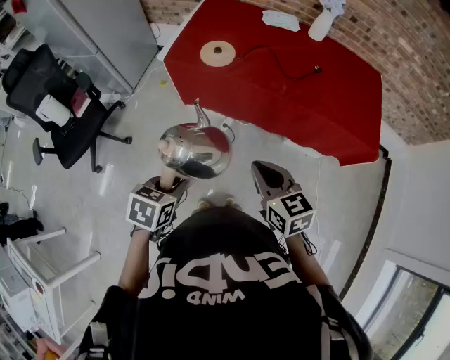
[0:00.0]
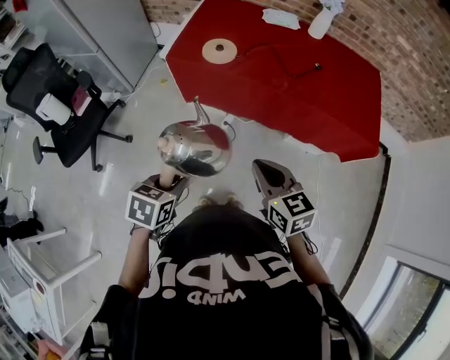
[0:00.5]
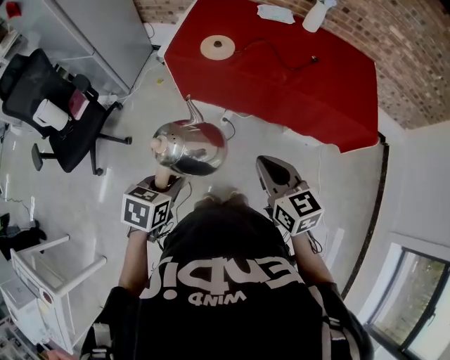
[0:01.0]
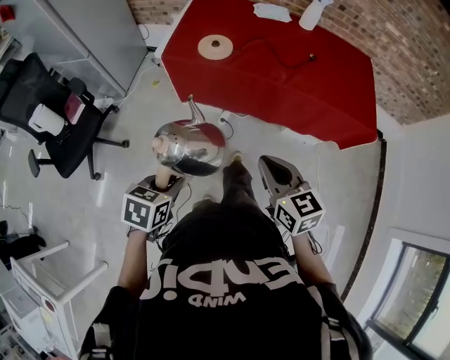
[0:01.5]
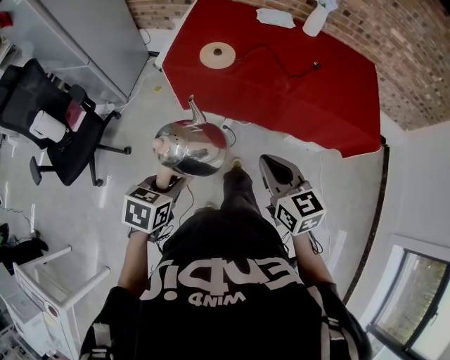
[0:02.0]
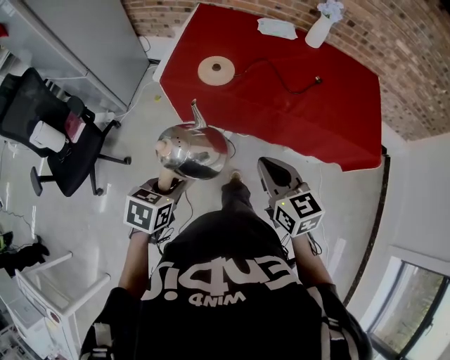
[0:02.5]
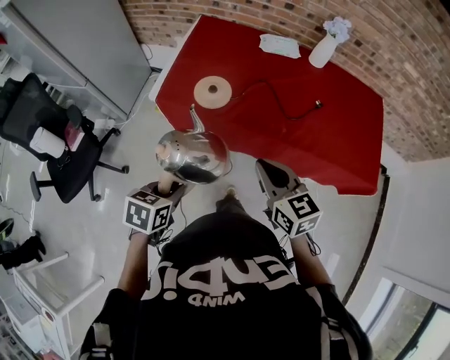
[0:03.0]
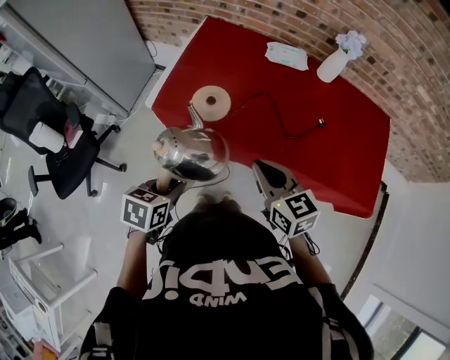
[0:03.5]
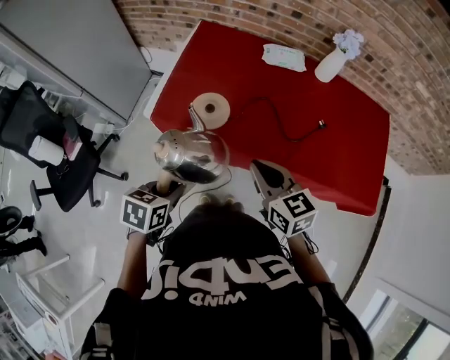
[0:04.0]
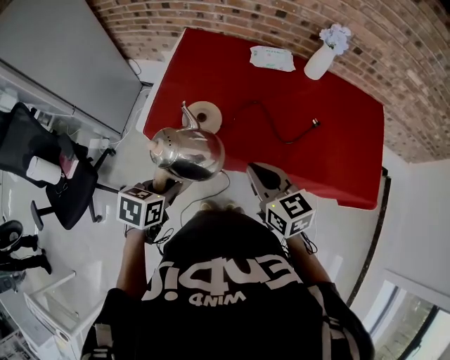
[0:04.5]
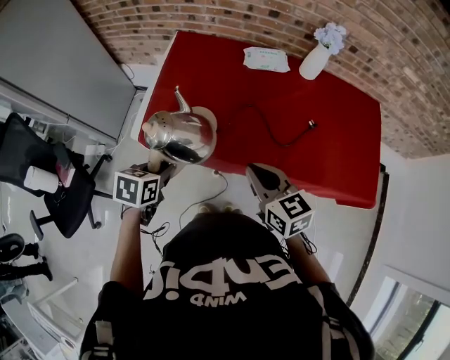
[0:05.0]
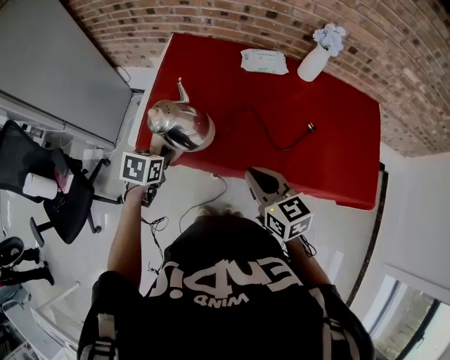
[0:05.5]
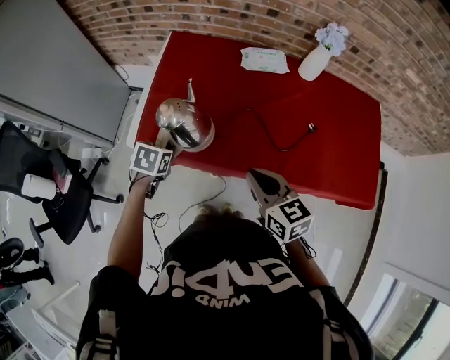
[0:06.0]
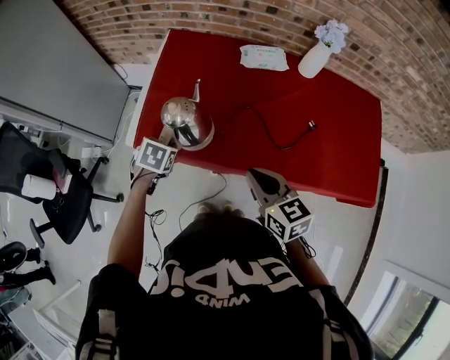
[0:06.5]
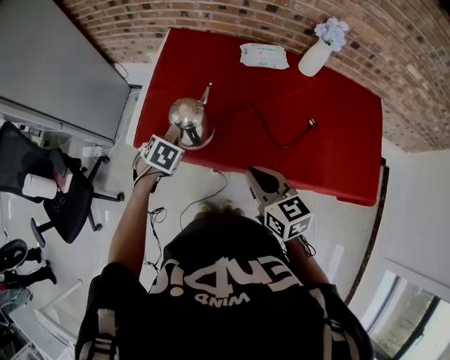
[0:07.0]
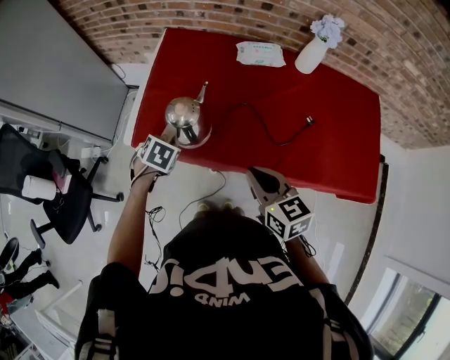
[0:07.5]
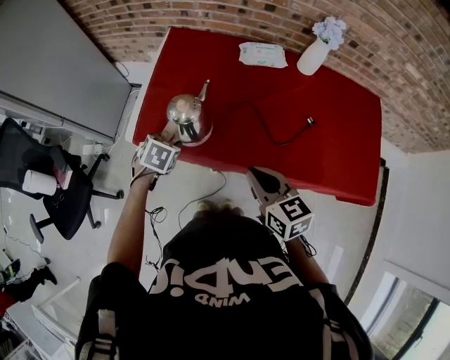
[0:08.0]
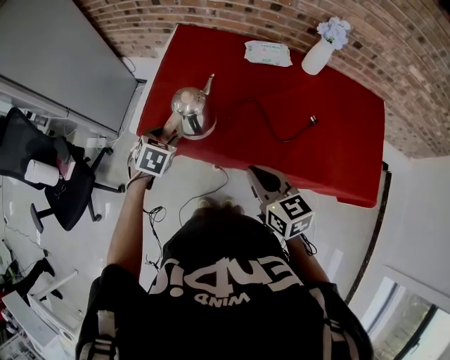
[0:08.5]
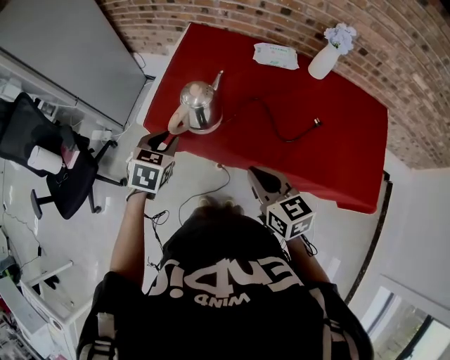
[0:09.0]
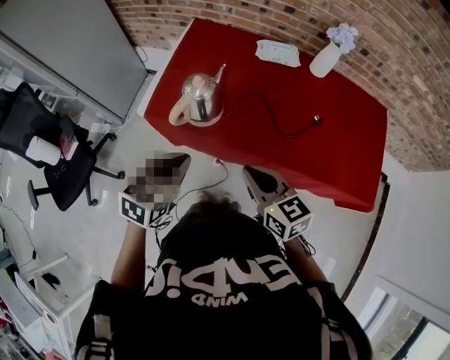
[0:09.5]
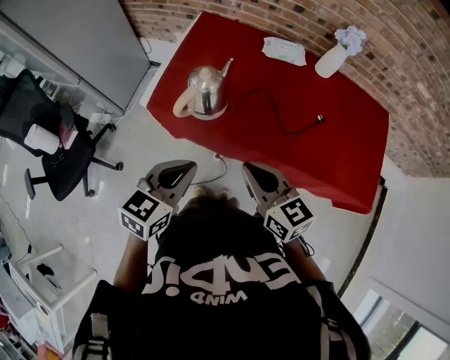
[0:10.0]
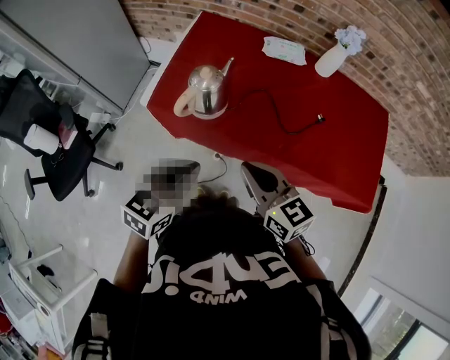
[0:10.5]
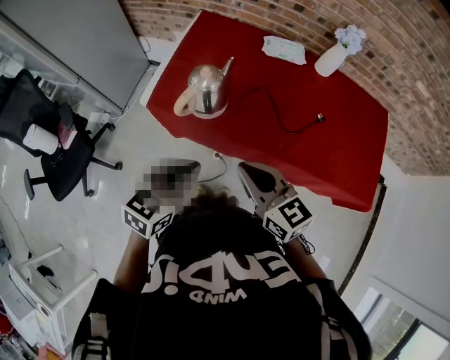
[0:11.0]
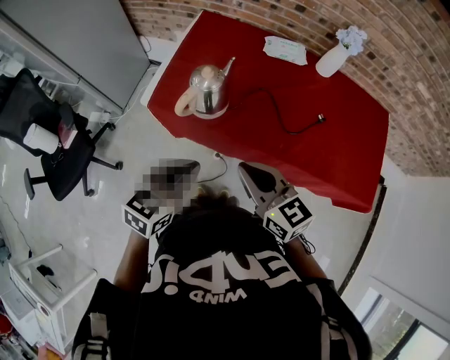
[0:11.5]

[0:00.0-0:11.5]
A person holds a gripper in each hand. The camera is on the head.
0:00.0 to 0:02.0: The left gripper goes roughly 5 cm to the left.
0:02.0 to 0:04.0: The two grippers go approximately 30 cm forward.
0:04.0 to 0:06.0: The left gripper goes approximately 25 cm forward and downward. The right gripper moves forward, approximately 5 cm.
0:06.0 to 0:07.5: The grippers stay close to where they were, moving slightly.
0:07.5 to 0:09.5: The right gripper moves backward, roughly 5 cm, while the left gripper goes approximately 25 cm backward and upward, points its fingers roughly 30 degrees further upward, and opens, then closes again.
0:09.5 to 0:11.5: The grippers make only small movements.

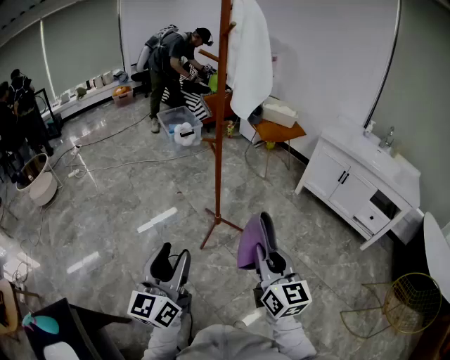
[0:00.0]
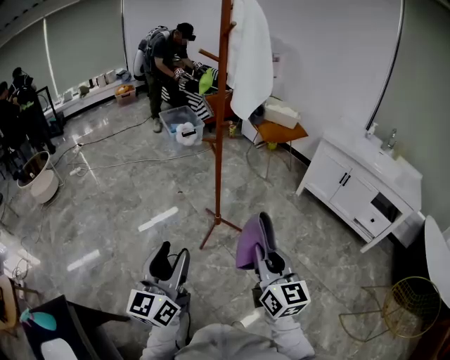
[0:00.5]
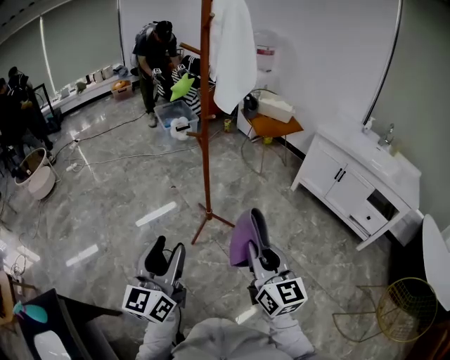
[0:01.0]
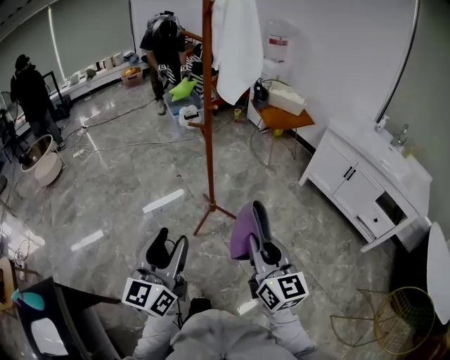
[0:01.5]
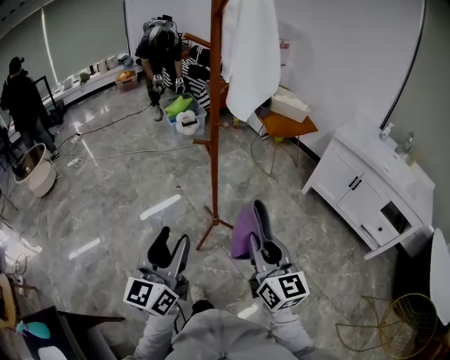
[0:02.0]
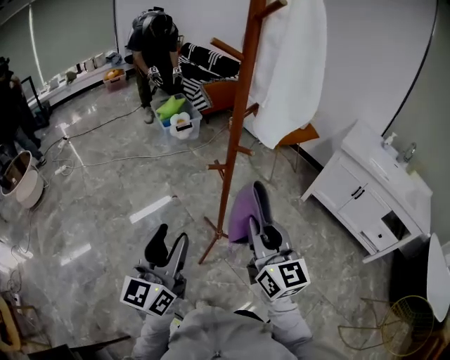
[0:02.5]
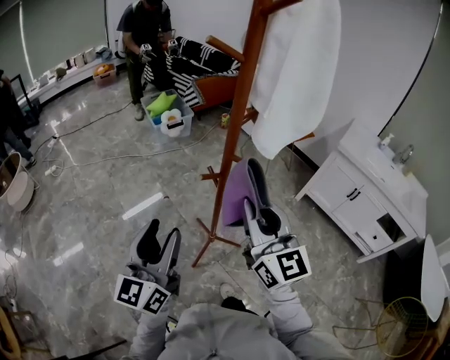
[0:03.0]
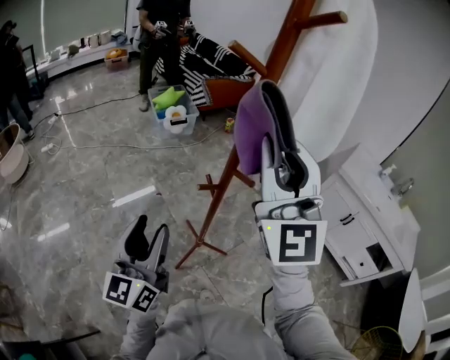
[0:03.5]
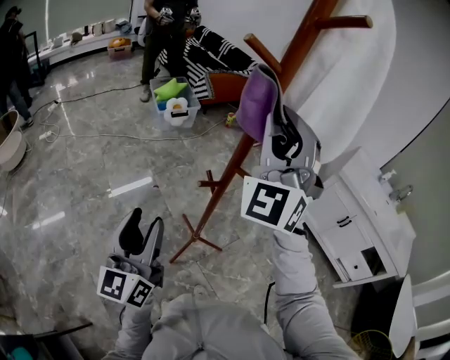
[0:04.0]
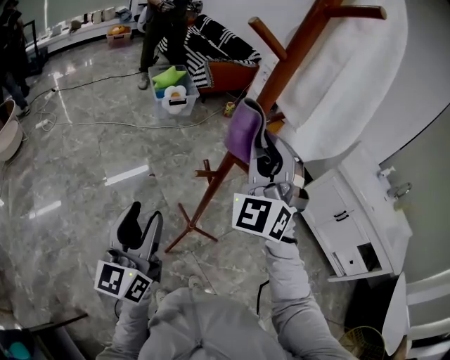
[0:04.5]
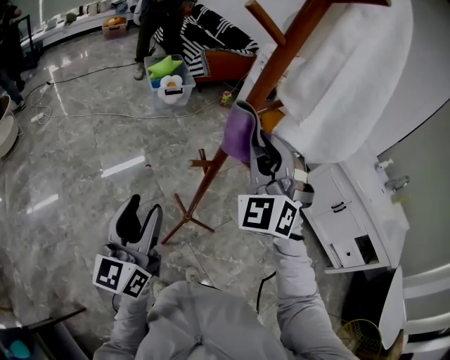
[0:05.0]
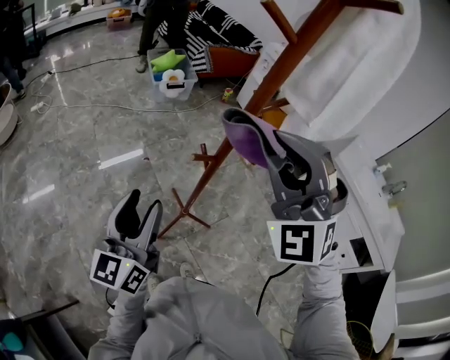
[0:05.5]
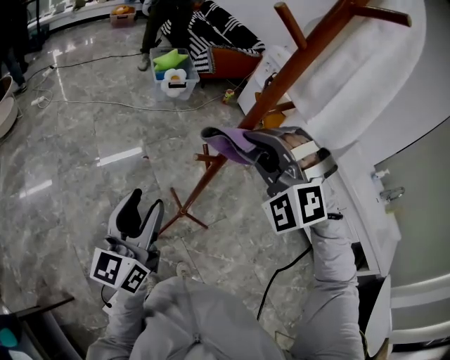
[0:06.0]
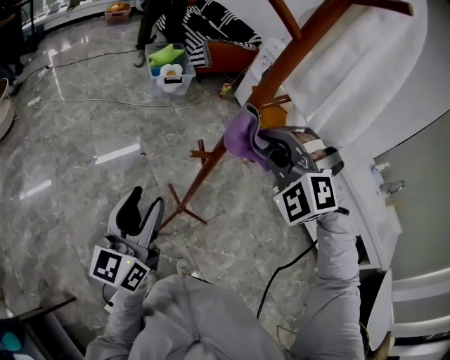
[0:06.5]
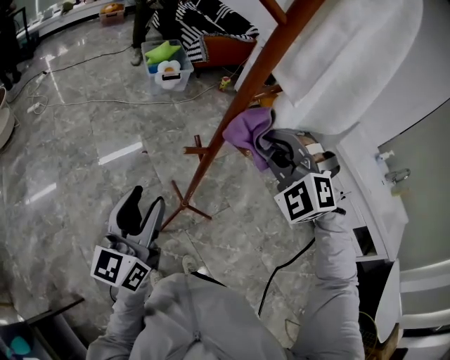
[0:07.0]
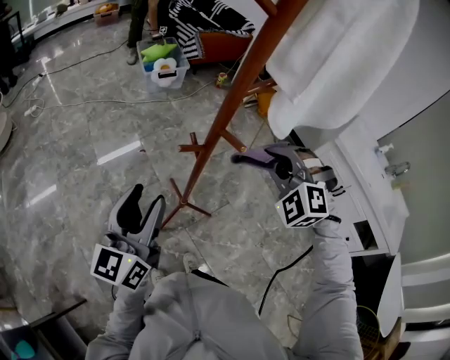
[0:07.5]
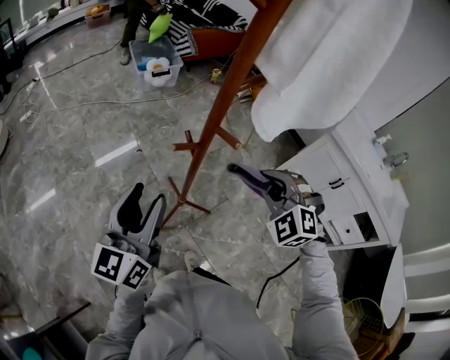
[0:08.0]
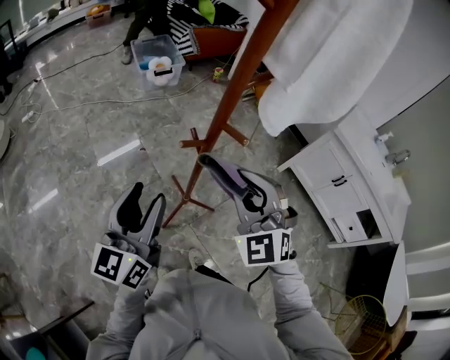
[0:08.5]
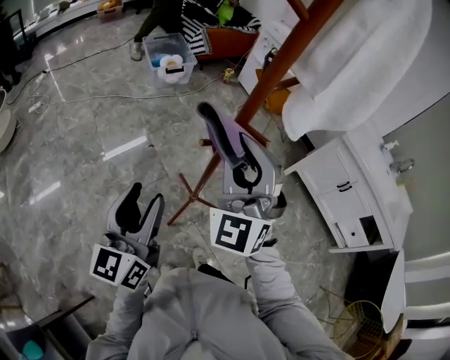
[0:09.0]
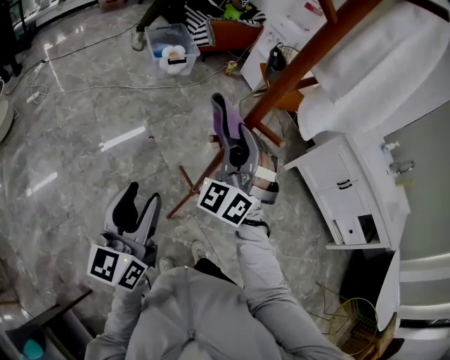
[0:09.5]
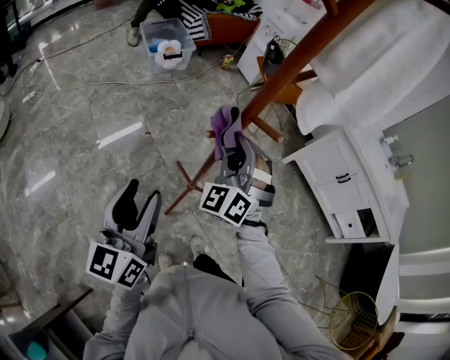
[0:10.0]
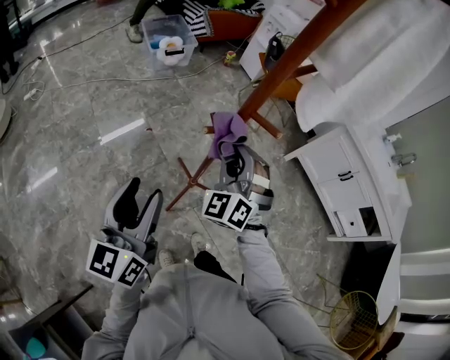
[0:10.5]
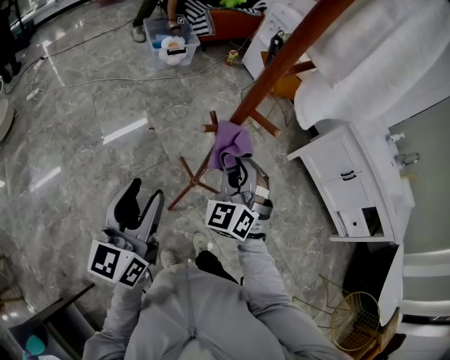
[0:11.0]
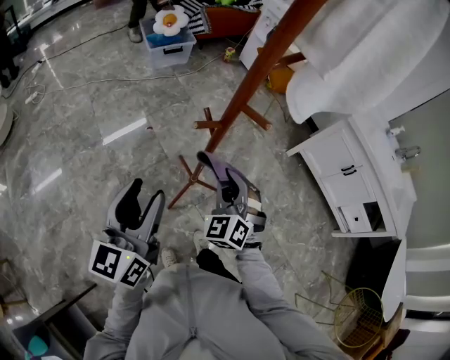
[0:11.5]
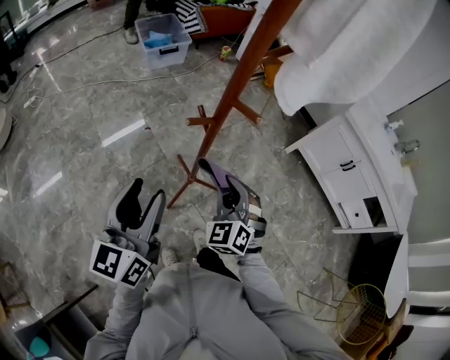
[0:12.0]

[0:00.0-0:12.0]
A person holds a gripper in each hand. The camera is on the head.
0:00.0 to 0:02.0: The grippers both shift forward by approximately 15 cm.
0:02.0 to 0:04.0: The left gripper shifts approximately 25 cm forward and to the left, while the right gripper travels forward and upward by about 40 cm, and twists some 70 degrees counterclockwise, seen from behind.
0:04.0 to 0:06.0: The right gripper moves up and down over some 15 cm, changing direction 2 times, and tilts its fingers roughly 50 degrees downward.
0:06.0 to 0:08.0: The left gripper travels to the right by some 5 cm. The right gripper moves to the right and downward, some 20 cm, and turns by roughly 30 degrees.
0:08.0 to 0:10.0: The right gripper goes about 15 cm to the left, and changes its angle by about 30 degrees. Meanwhile the left gripper shifts about 10 cm to the left.
0:10.0 to 0:12.0: The right gripper goes some 15 cm downward, backward and to the right, and changes its angle by some 20 degrees. The left gripper is displaced to the right by roughly 5 cm.

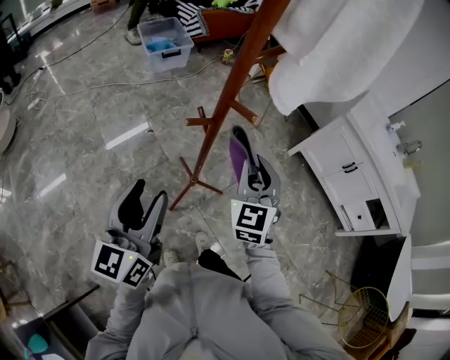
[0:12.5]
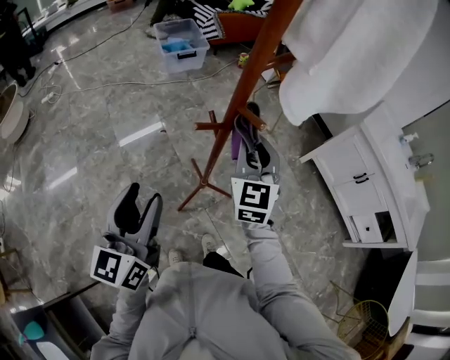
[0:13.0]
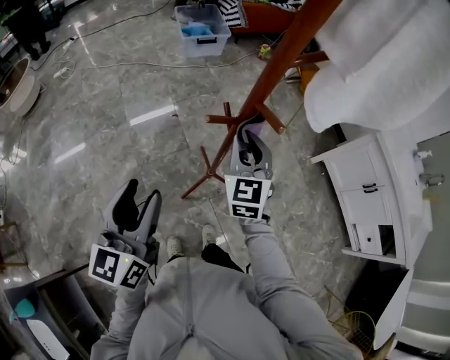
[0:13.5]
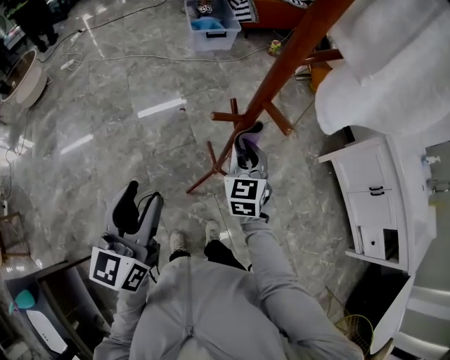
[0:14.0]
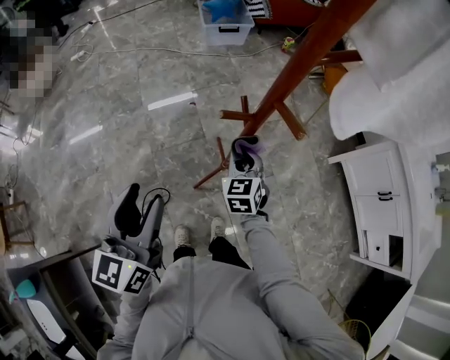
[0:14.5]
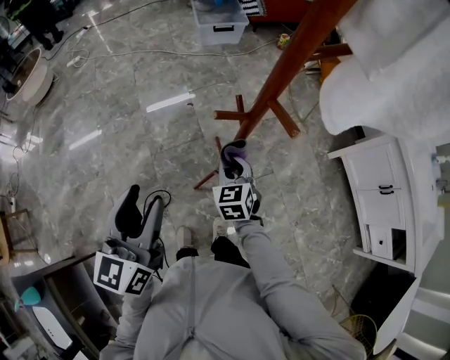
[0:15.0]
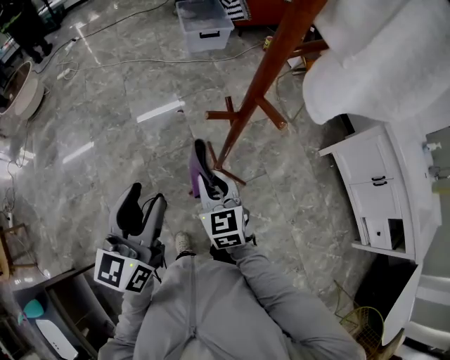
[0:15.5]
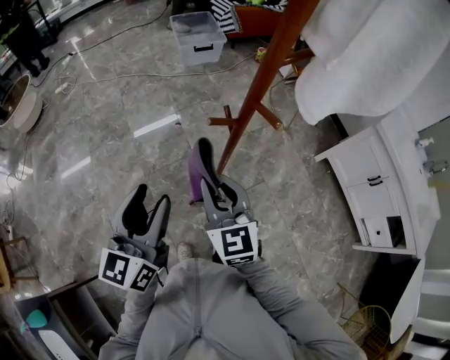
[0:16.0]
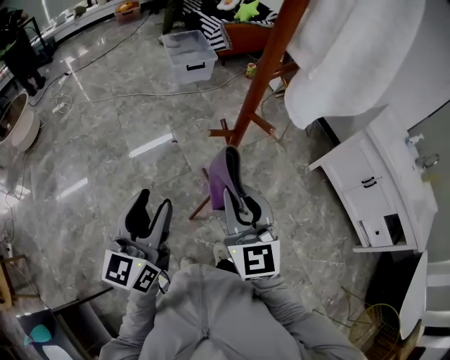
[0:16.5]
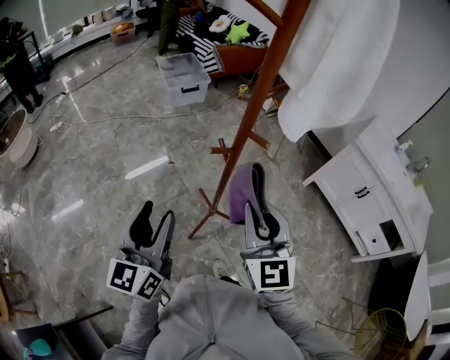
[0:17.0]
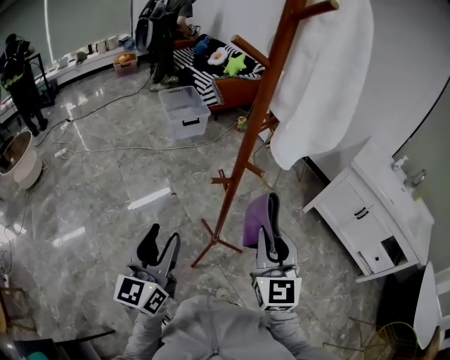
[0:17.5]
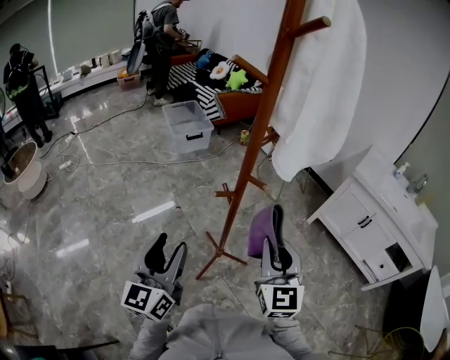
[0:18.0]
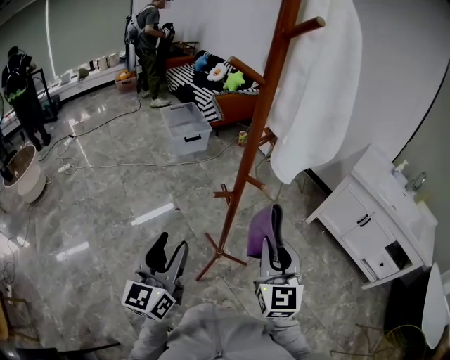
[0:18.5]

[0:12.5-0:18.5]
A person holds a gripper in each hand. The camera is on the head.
0:12.5 to 0:14.5: The right gripper travels downward and to the left by roughly 20 cm, and changes its angle by approximately 30 degrees. Meanwhile the left gripper moves about 5 cm, and turns by roughly 20 degrees.
0:14.5 to 0:16.5: The right gripper moves upward and backward, approximately 25 cm, and turns by approximately 20 degrees.
0:16.5 to 0:18.5: The right gripper shifts about 10 cm to the right.
